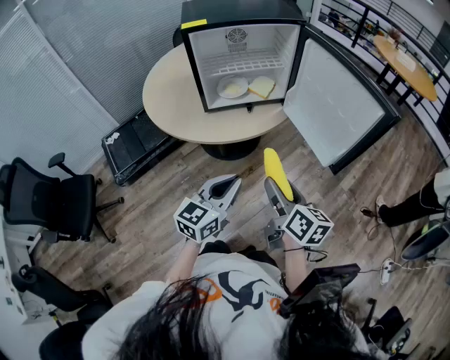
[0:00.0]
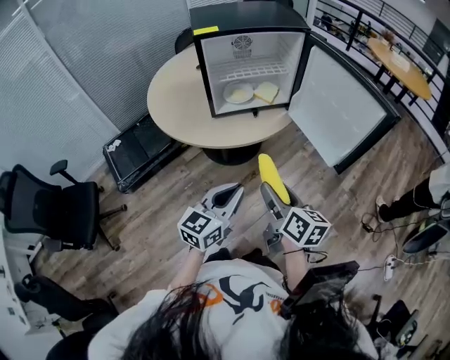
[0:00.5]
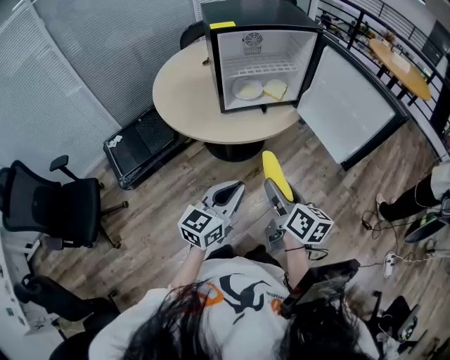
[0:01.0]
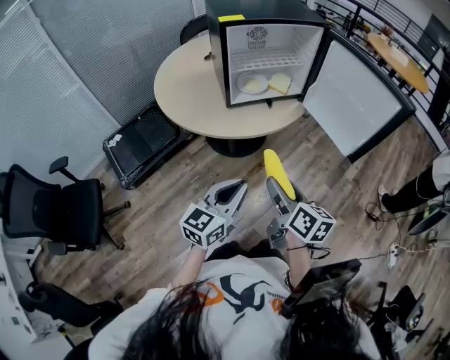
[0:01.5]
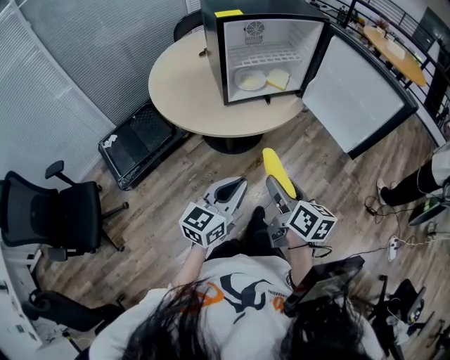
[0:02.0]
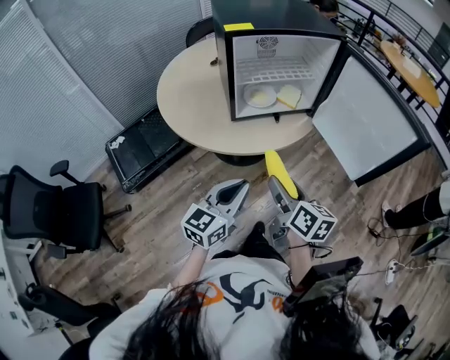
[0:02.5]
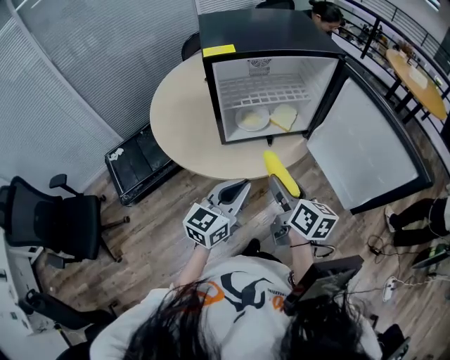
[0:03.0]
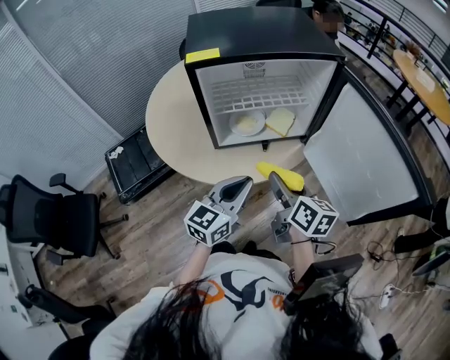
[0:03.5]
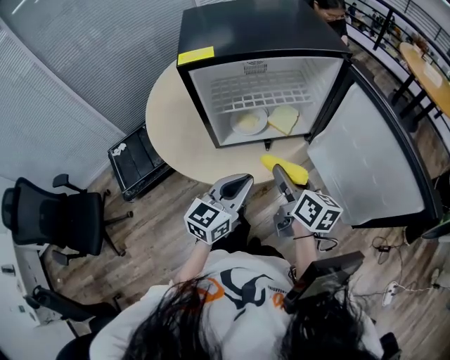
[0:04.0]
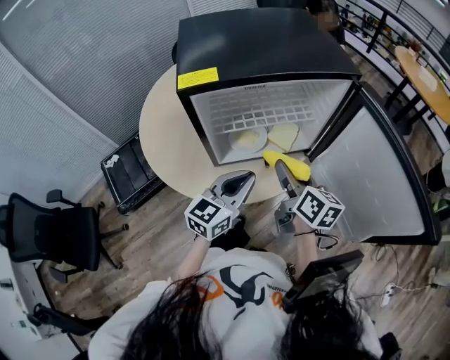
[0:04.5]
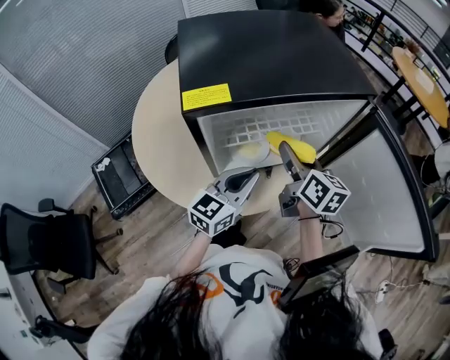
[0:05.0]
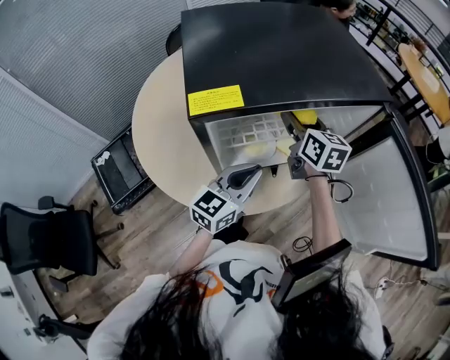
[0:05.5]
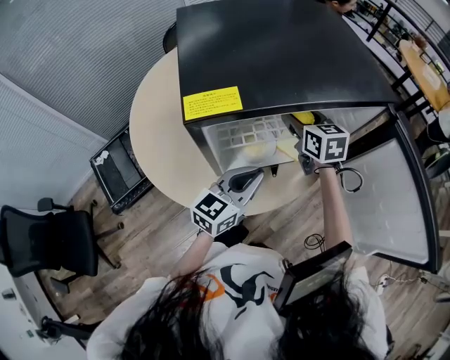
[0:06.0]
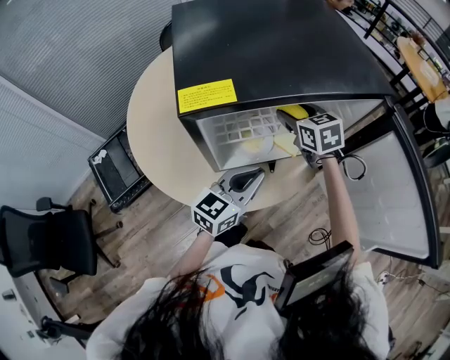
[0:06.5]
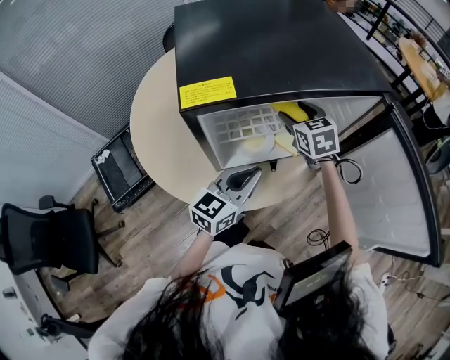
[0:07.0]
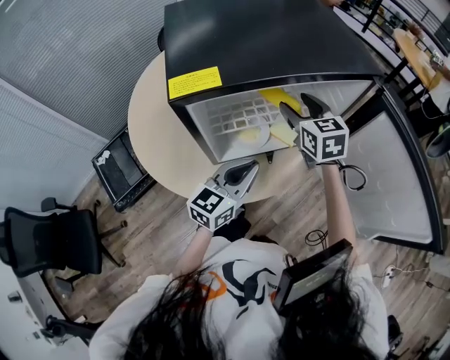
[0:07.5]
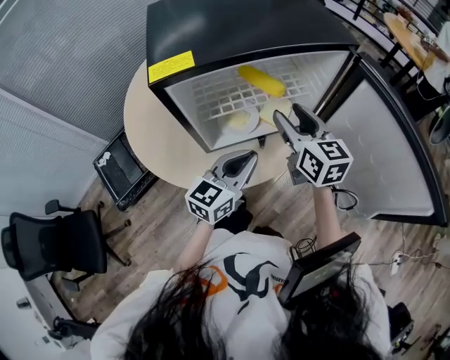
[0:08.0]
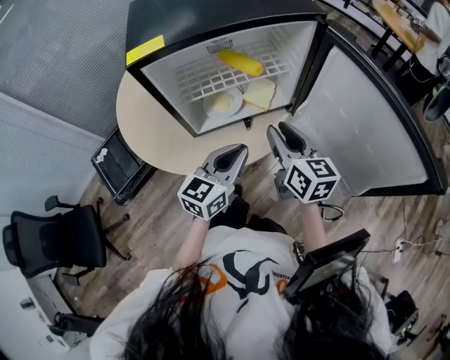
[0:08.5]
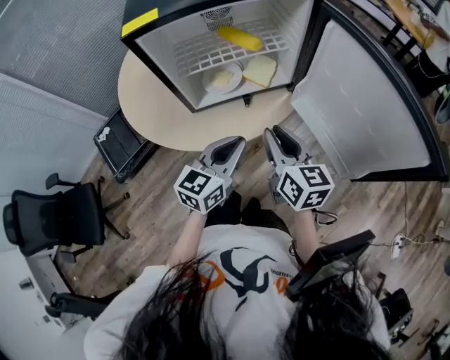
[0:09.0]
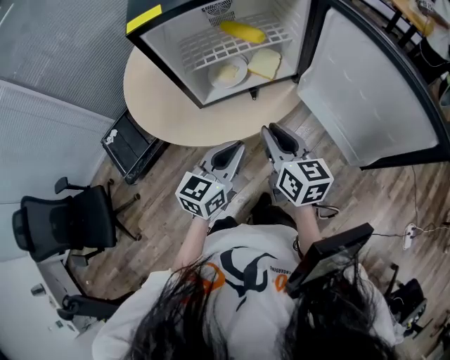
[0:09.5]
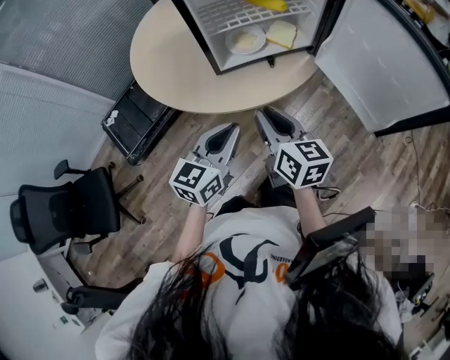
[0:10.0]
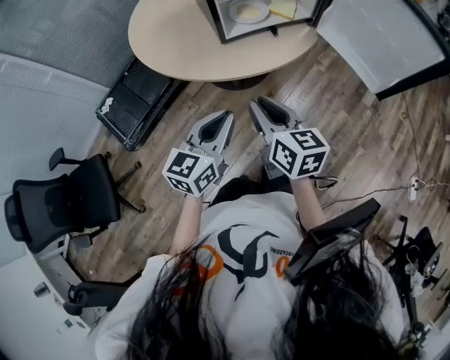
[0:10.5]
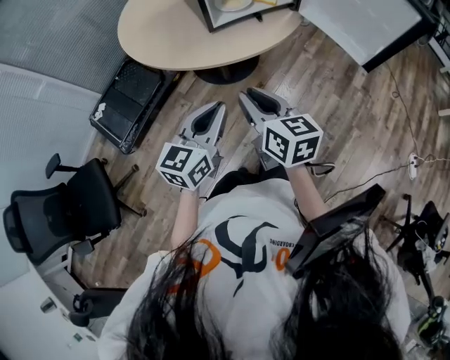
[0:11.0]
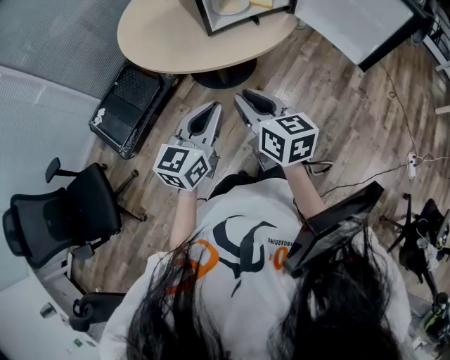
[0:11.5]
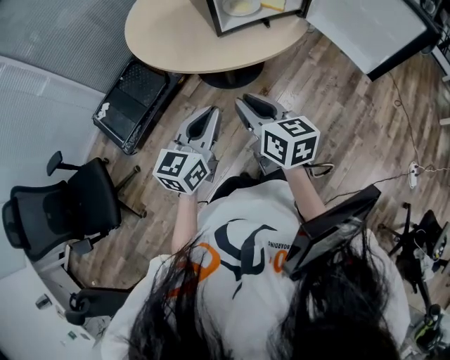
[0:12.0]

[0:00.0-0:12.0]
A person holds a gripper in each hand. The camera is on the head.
0:00.0 to 0:02.0: The left gripper travels to the left and backward by some 15 cm; the right gripper goes approximately 15 cm to the left.
0:02.0 to 0:04.0: Both grippers move forward, about 30 cm.
0:04.0 to 0:06.0: The left gripper goes some 15 cm forward. The right gripper moves forward, approximately 30 cm, and swivels roughly 40 degrees.
0:06.0 to 0:08.0: The right gripper heads backward, upward and to the right, covering roughly 15 cm. Meanwhile the left gripper ends up roughly 5 cm from where it was.
0:08.0 to 0:10.0: Both grippers move backward, roughly 25 cm. The right gripper closes its fingers.
0:10.0 to 0:12.0: Both grippers travel together backward and to the left, roughly 15 cm.

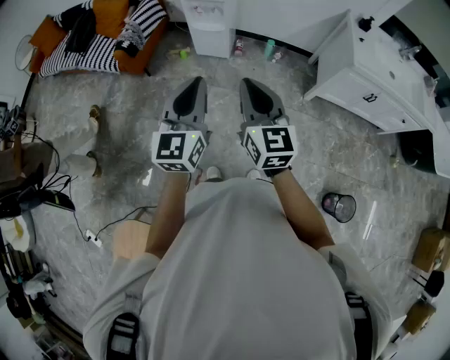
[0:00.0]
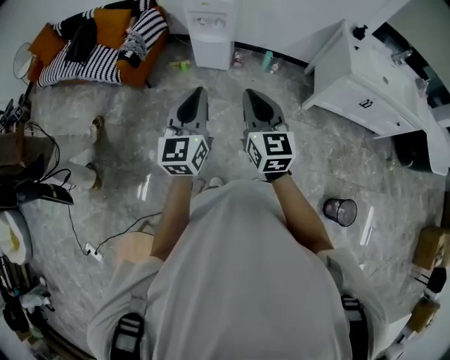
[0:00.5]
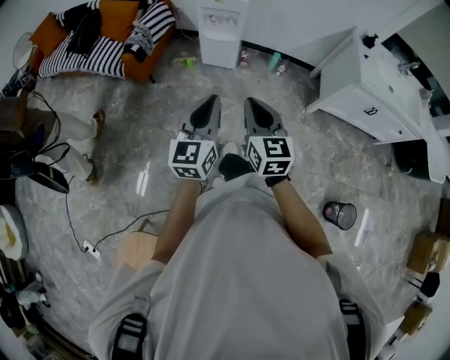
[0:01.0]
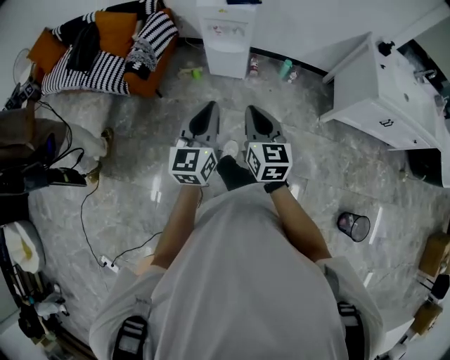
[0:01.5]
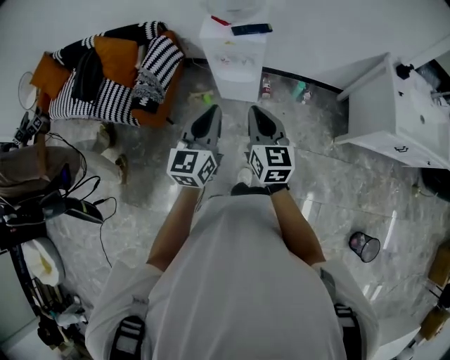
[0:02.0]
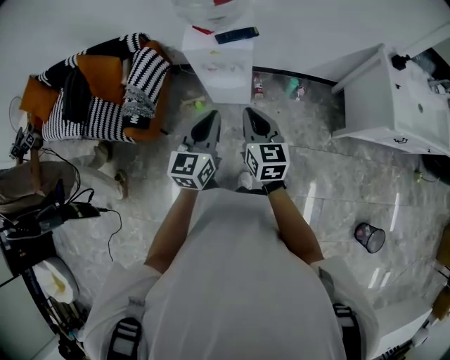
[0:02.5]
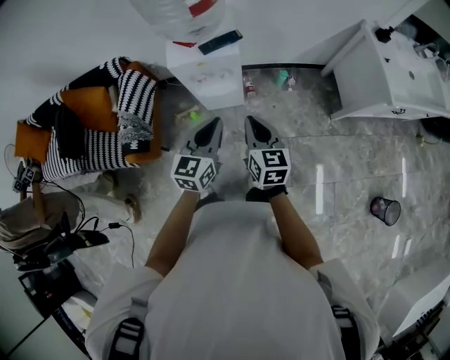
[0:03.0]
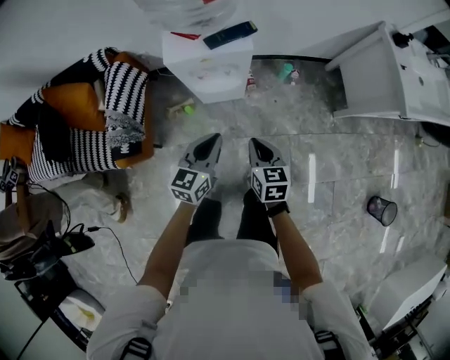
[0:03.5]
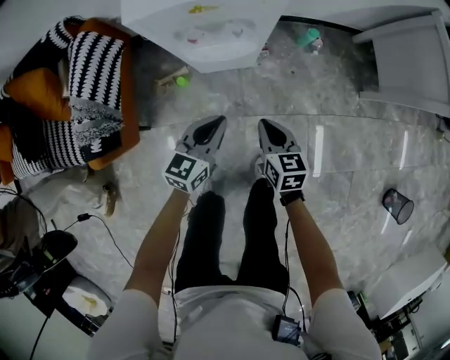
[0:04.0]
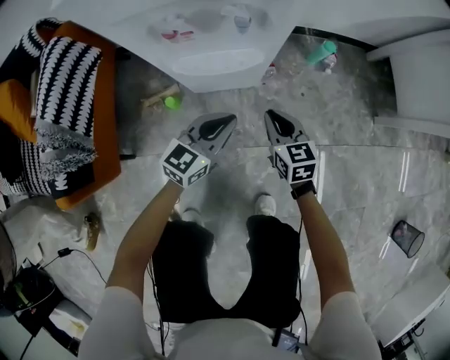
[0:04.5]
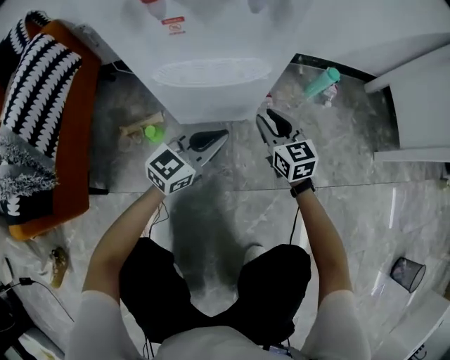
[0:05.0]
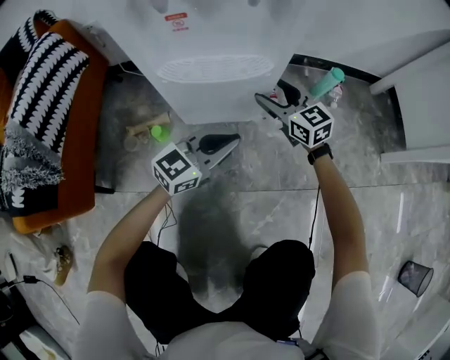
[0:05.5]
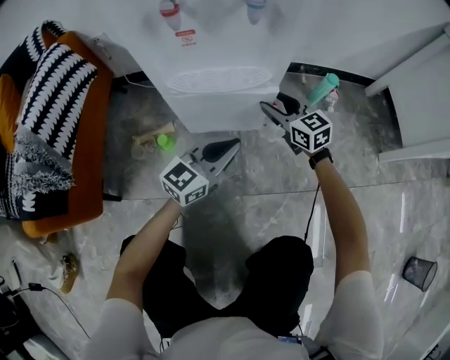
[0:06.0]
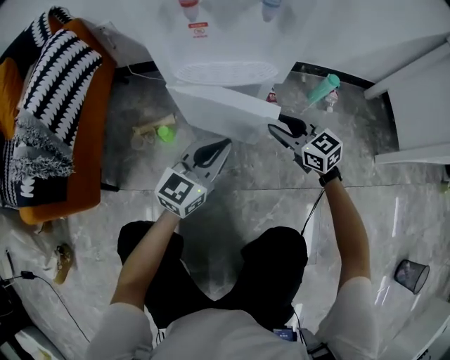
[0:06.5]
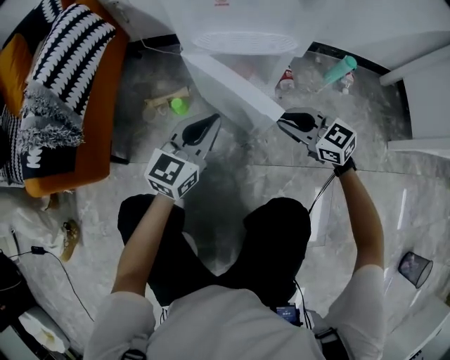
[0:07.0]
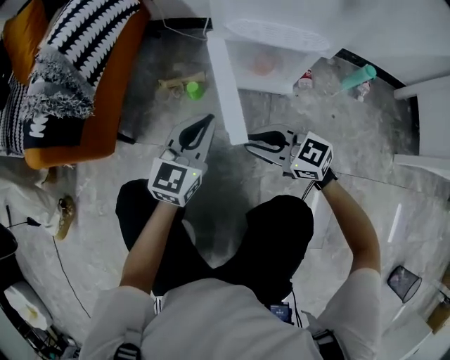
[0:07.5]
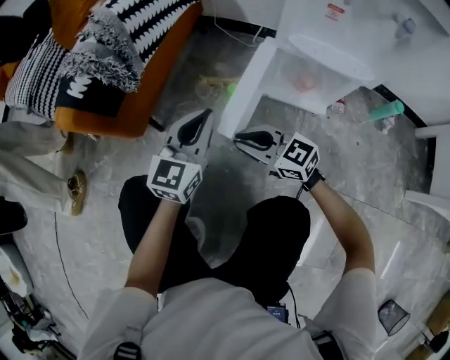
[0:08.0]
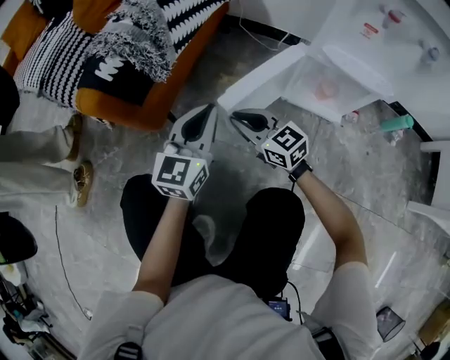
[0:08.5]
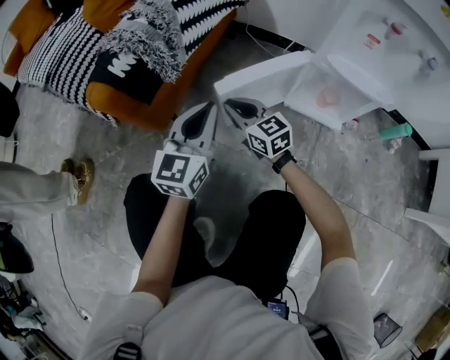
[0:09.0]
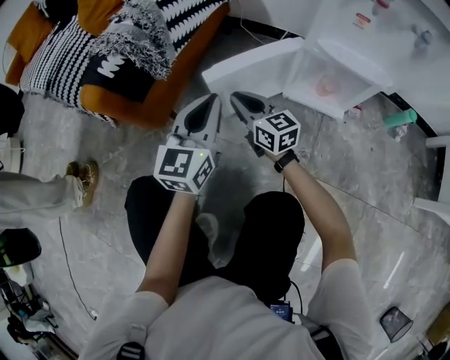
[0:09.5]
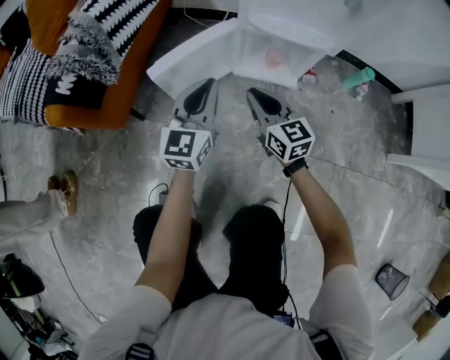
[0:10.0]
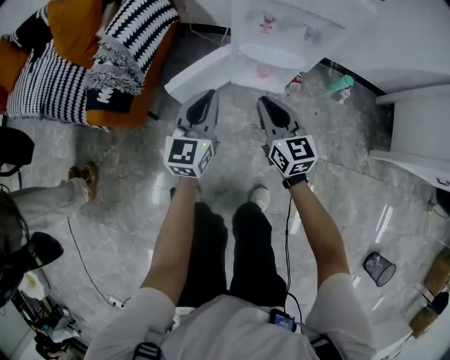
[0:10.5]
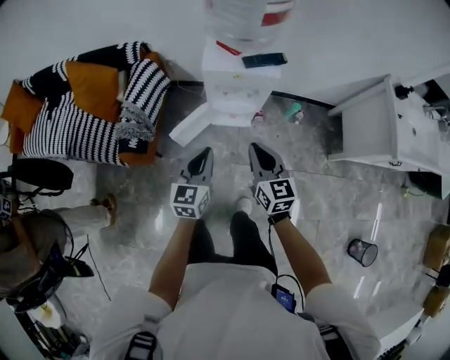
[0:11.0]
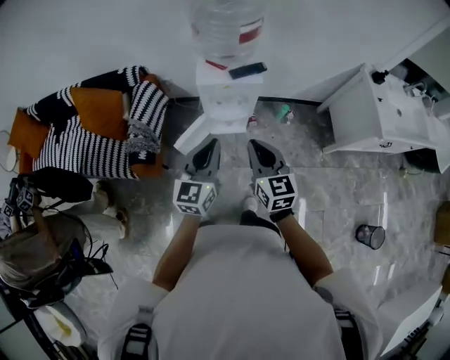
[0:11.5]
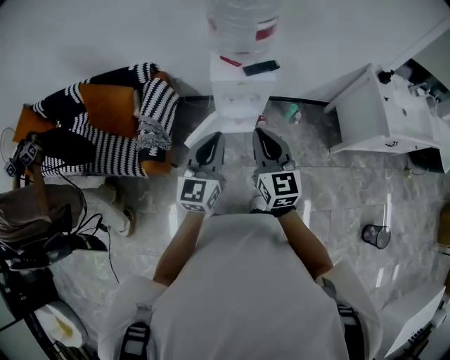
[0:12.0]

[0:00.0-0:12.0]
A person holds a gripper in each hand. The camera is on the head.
0:00.0 to 0:02.0: Both grippers travel together forward, approximately 35 cm.
0:02.0 to 0:04.0: The right gripper heads downward, covering roughly 40 cm, and rotates some 30 degrees; the left gripper travels downward and forward by about 50 cm, and changes its angle by approximately 40 degrees.
0:04.0 to 0:06.0: The left gripper moves downward, approximately 25 cm, and rotates about 20 degrees, while the right gripper moves downward and forward, approximately 35 cm, swivels roughly 30 degrees, and opens its fingers.
0:06.0 to 0:08.0: The left gripper moves approximately 30 cm, and rotates roughly 50 degrees. Meanwhile the right gripper shifts by roughly 40 cm, swivels some 50 degrees, and closes up.
0:08.0 to 0:10.0: The right gripper travels to the right and upward by approximately 15 cm, and rotates about 40 degrees. The left gripper travels to the right by some 5 cm.
0:10.0 to 0:12.0: The grippers both shift upward by some 70 cm. The right gripper changes its angle by about 30 degrees.

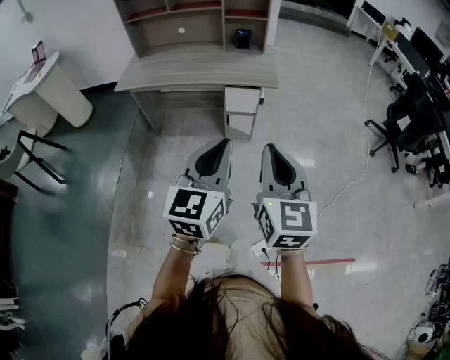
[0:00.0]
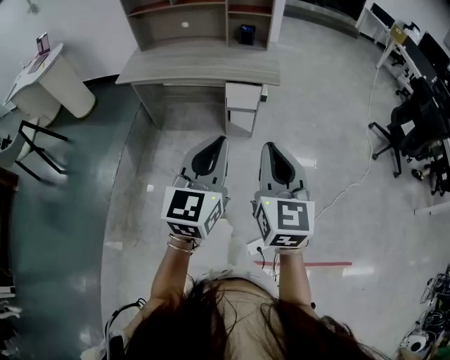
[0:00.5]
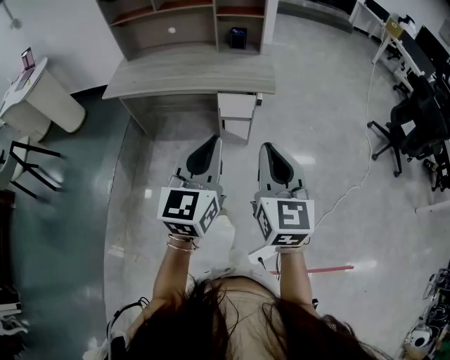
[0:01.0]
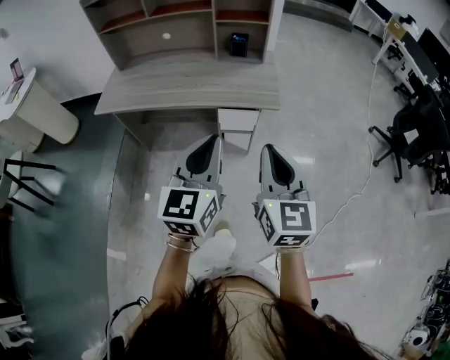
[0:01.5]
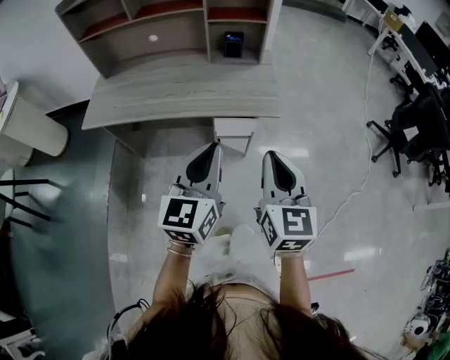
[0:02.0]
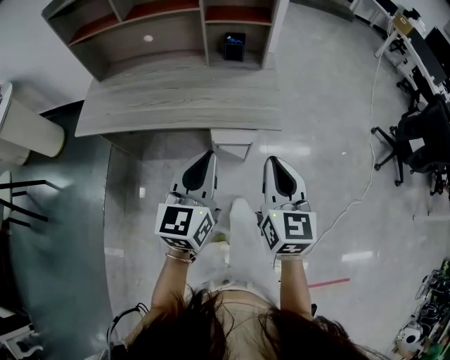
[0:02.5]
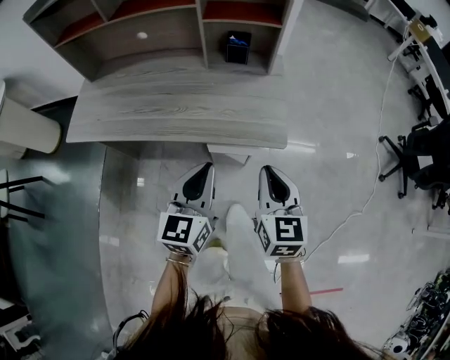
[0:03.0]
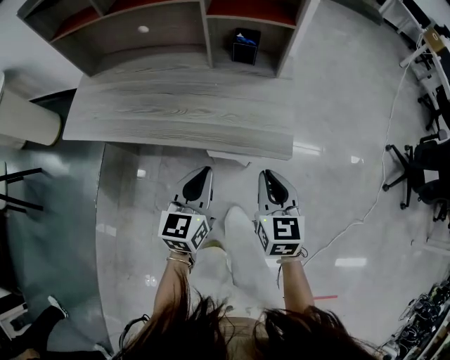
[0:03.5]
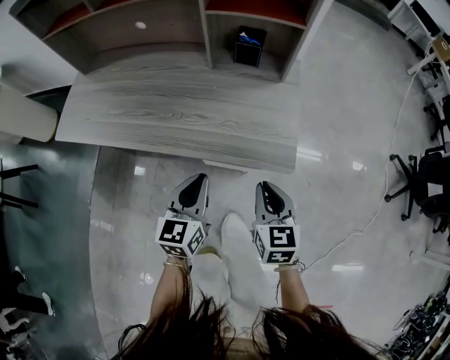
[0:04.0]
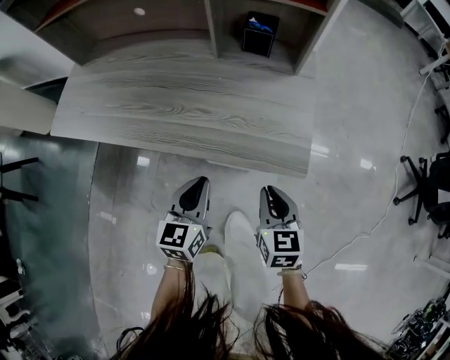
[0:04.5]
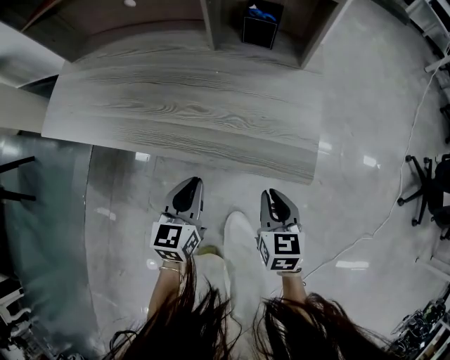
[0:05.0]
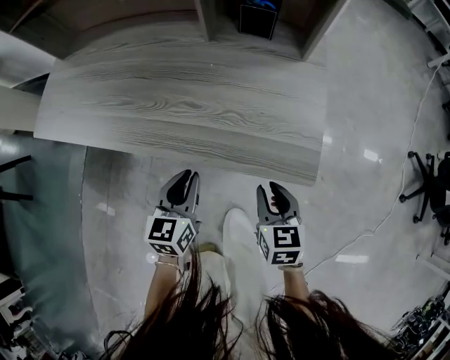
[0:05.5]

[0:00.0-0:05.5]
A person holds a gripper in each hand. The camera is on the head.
0:00.0 to 0:02.0: Both grippers move forward, roughly 30 cm.
0:02.0 to 0:03.5: The grippers both shift forward and downward by approximately 25 cm.
0:03.5 to 0:05.5: The two grippers go roughly 20 cm downward.
